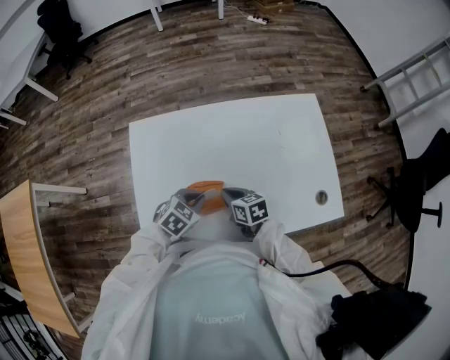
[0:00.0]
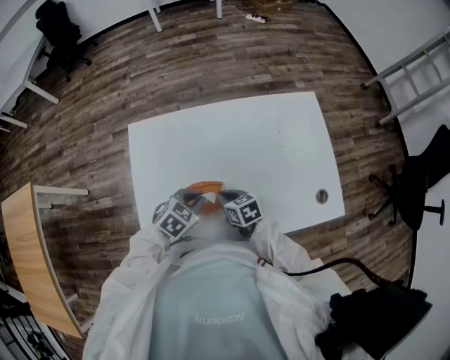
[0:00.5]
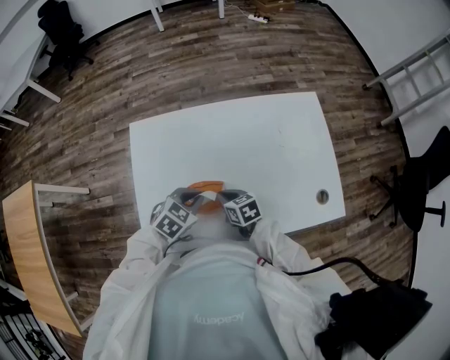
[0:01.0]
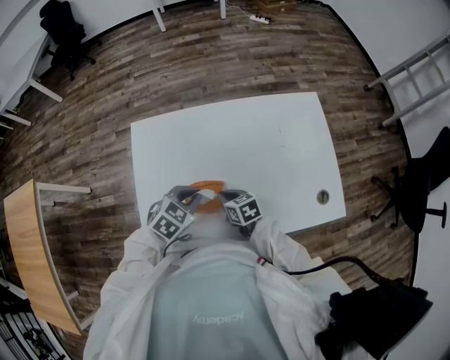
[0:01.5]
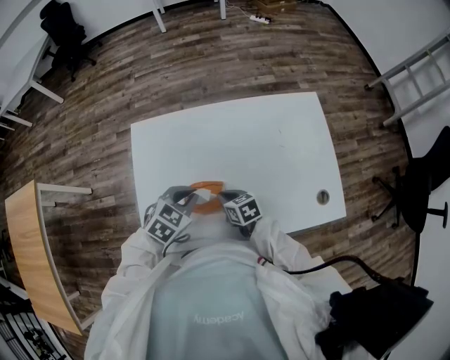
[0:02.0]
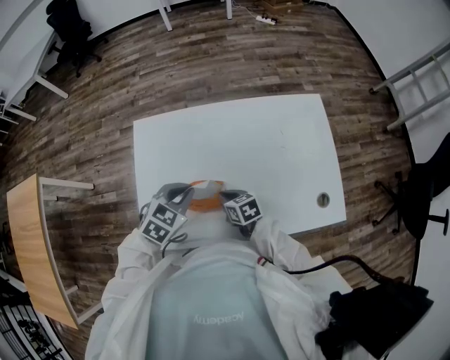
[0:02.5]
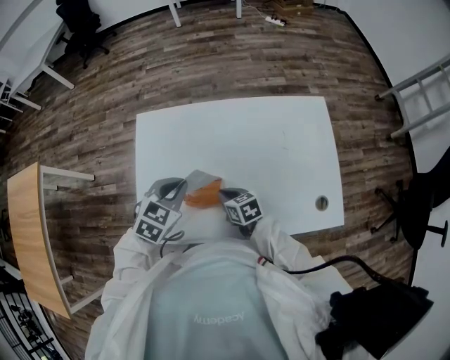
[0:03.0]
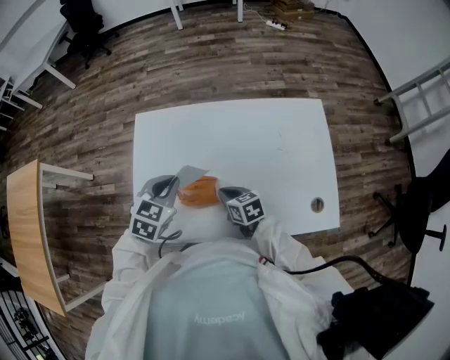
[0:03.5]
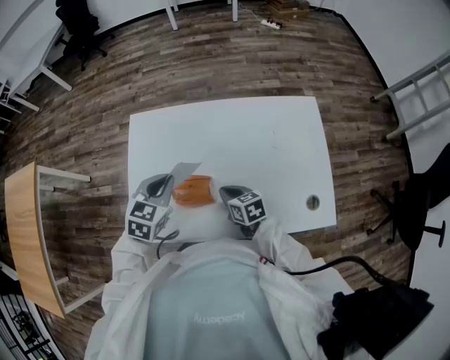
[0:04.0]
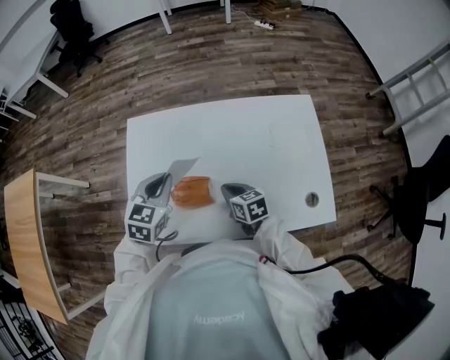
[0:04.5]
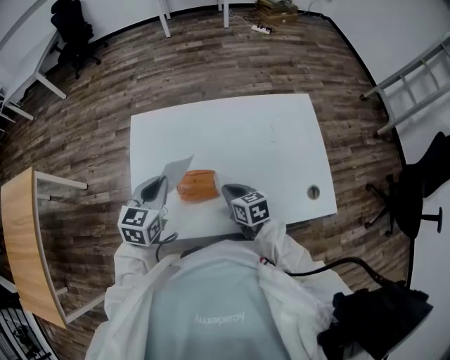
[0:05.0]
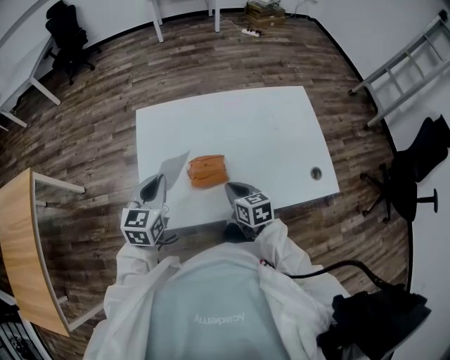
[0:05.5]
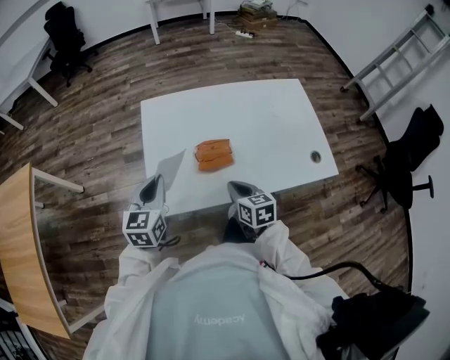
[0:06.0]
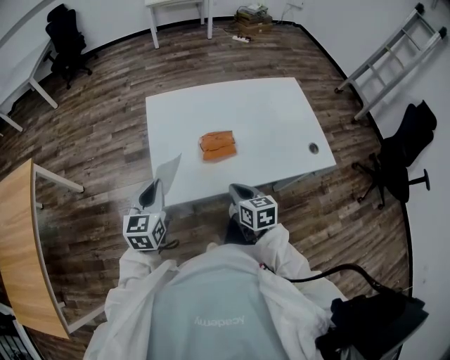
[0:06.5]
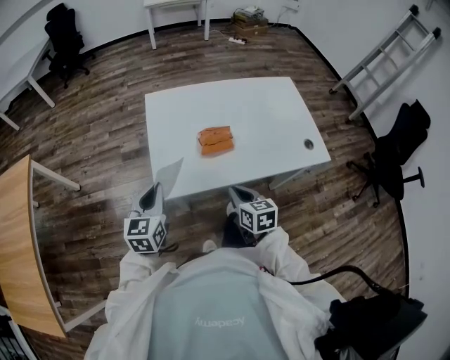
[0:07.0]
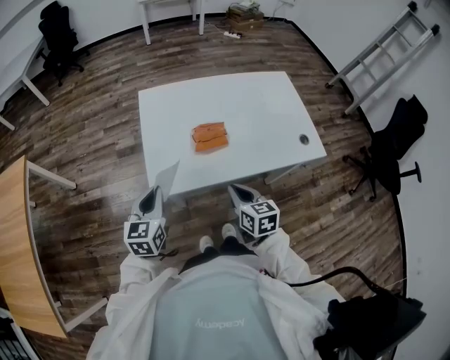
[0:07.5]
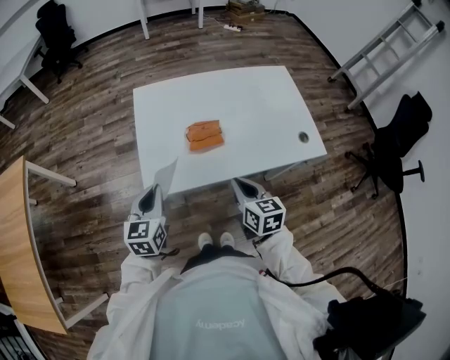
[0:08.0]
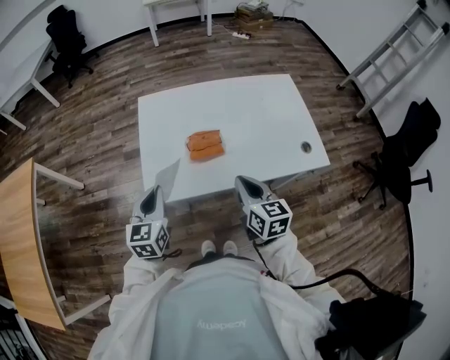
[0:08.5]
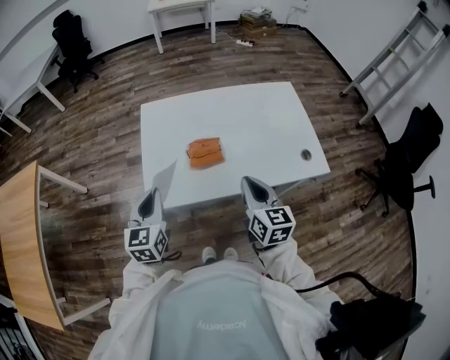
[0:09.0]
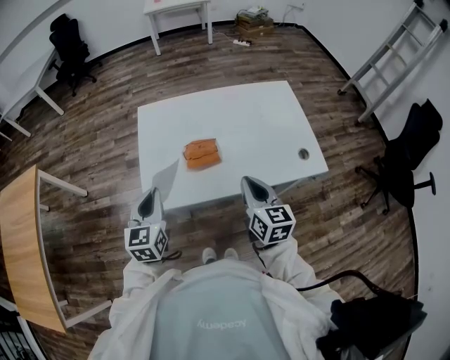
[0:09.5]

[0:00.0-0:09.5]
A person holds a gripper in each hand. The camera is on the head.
0:00.0 to 0:02.0: The left gripper travels upward by roughly 10 cm.
0:02.0 to 0:04.0: The right gripper moves roughly 5 cm. The left gripper heads upward, covering approximately 5 cm, and turns by roughly 20 degrees.
0:04.0 to 0:05.5: The left gripper moves to the left, roughly 10 cm. The right gripper moves some 10 cm.
0:05.5 to 0:07.5: The left gripper is displaced backward and to the left by some 15 cm. Meanwhile the right gripper travels backward by about 15 cm.
0:07.5 to 0:09.5: The right gripper is displaced to the right and upward by roughly 10 cm. The left gripper changes place by approximately 5 cm.

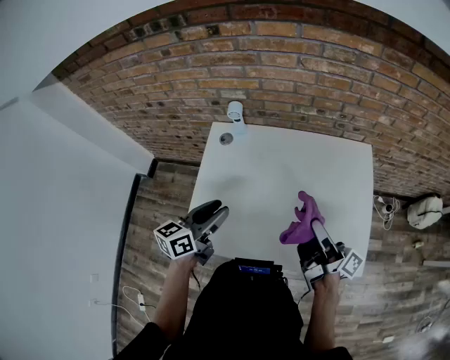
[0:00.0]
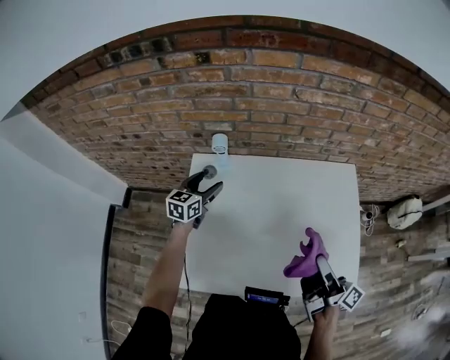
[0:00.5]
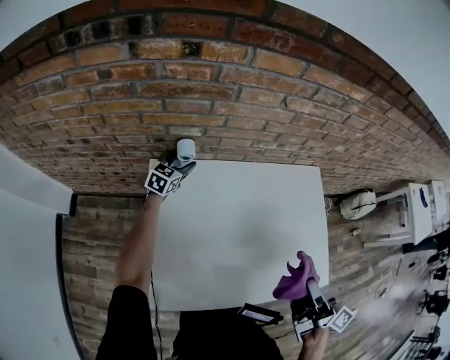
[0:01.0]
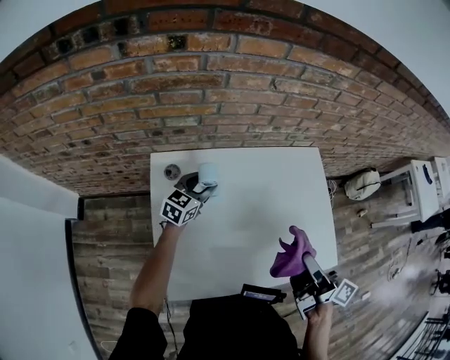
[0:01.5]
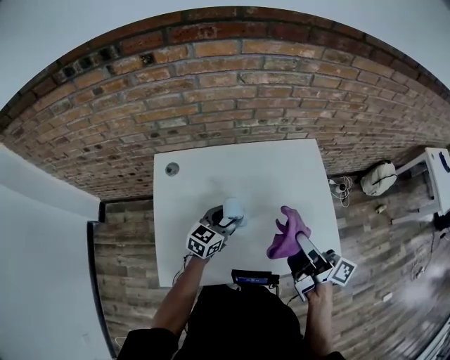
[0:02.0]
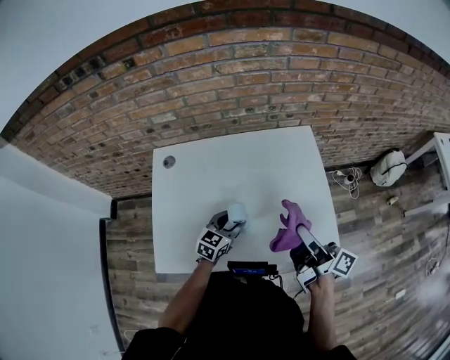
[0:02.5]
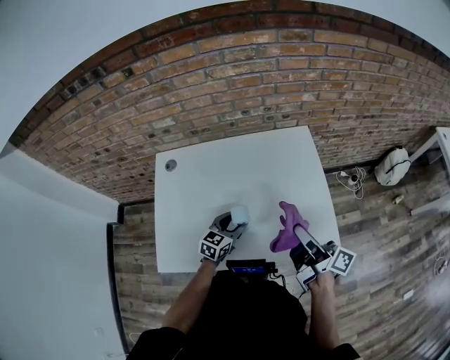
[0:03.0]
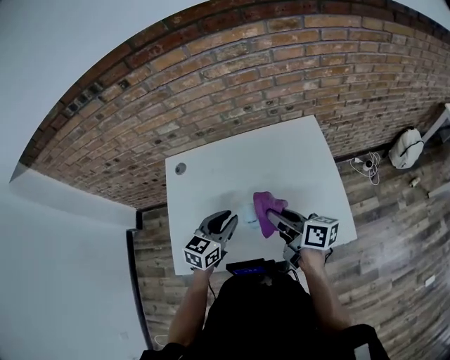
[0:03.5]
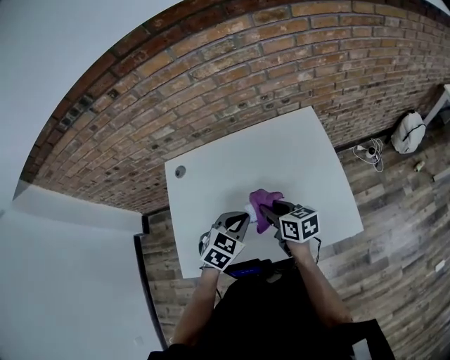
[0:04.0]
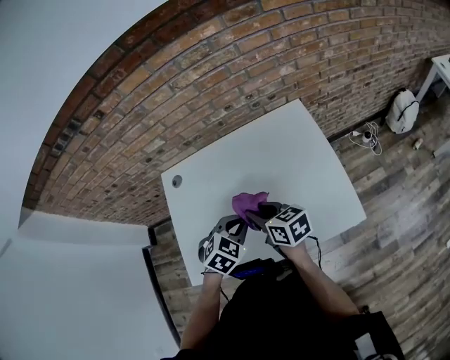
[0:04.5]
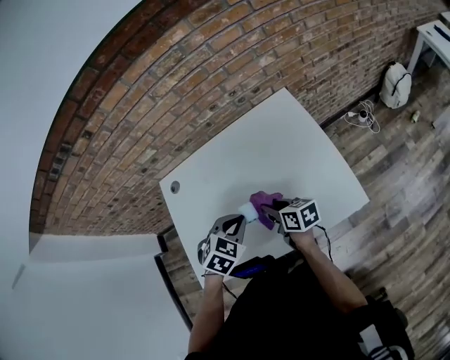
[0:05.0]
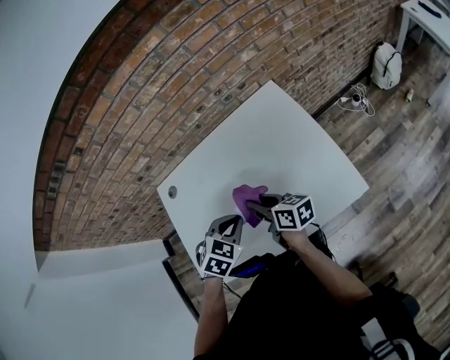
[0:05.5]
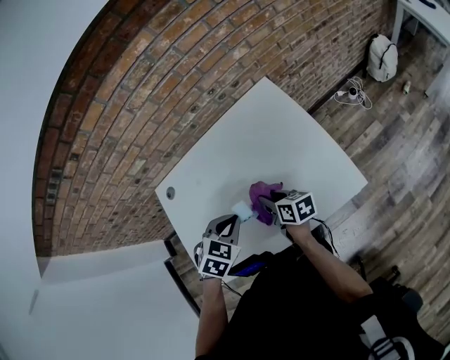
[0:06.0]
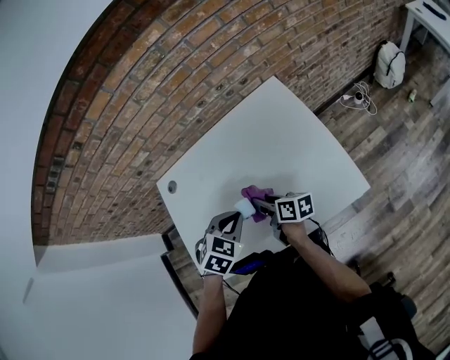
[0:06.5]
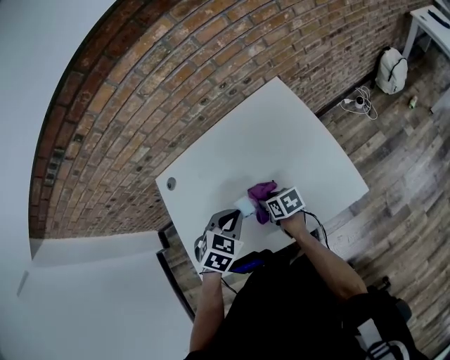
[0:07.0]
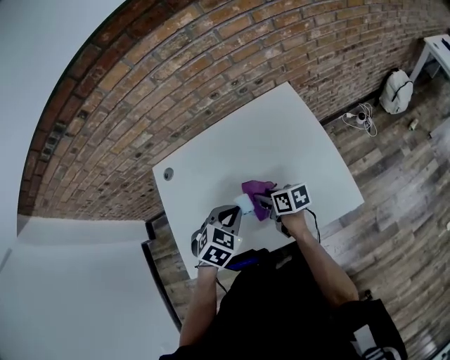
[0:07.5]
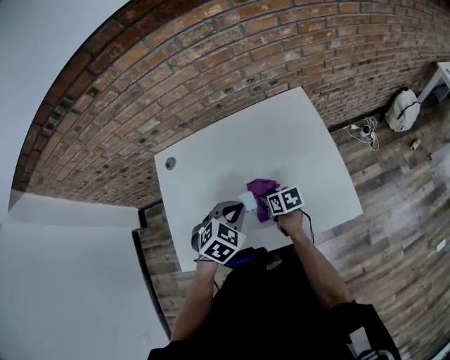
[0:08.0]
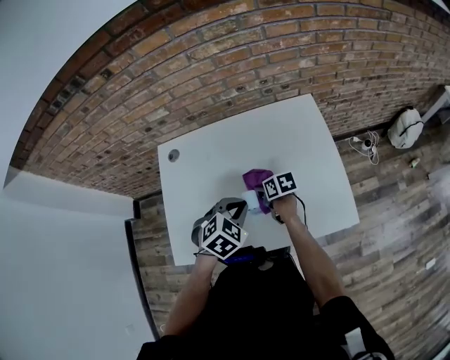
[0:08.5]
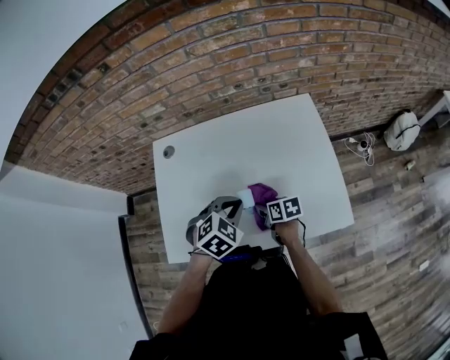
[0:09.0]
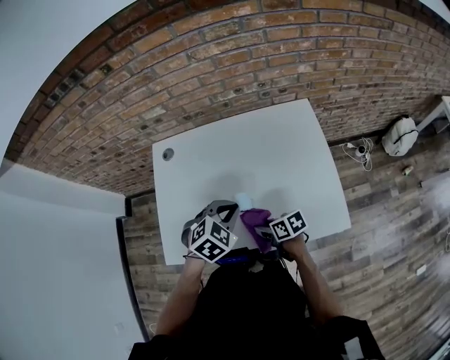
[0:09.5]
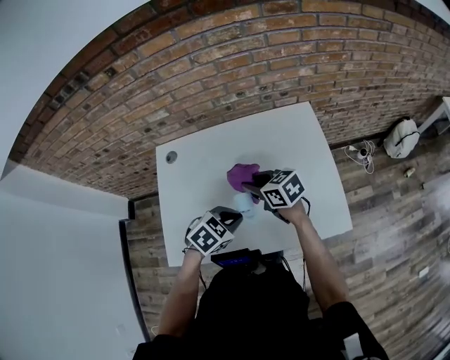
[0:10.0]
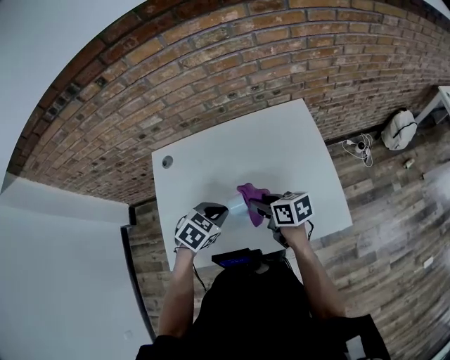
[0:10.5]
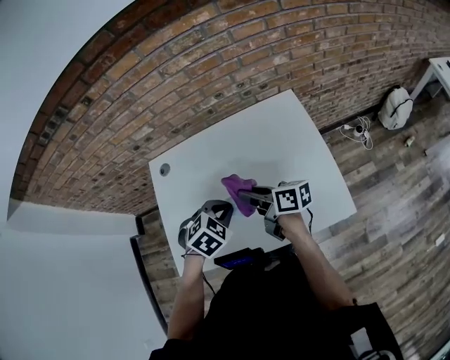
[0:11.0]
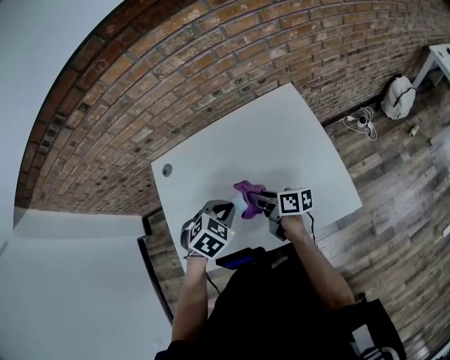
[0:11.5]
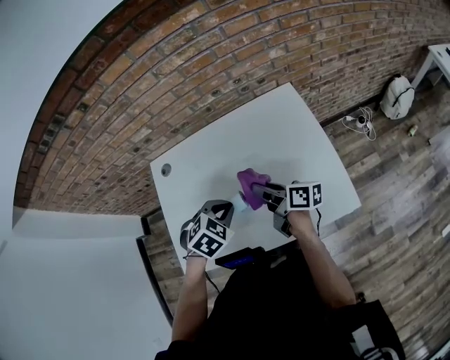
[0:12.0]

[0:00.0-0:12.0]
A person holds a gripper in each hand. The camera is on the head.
0:00.0 to 0:02.0: The left gripper heads to the right and downward, covering about 15 cm, goes forward and returns, some 40 cm each way, and turns by about 30 degrees.
0:02.0 to 0:04.0: The right gripper shifts approximately 15 cm downward, and points its fingers approximately 30 degrees further downward, while the left gripper is displaced backward and to the right by roughly 10 cm, travels downward and back again, about 5 cm each way, swivels roughly 40 degrees, and closes up.
0:04.0 to 0:06.0: The right gripper swings up and down, about 10 cm each way, with 3 reversals.
0:06.0 to 0:08.0: The right gripper moves up and down over roughly 10 cm, changing direction 2 times, and rotates some 30 degrees.
0:08.0 to 0:10.0: The right gripper heads upward, covering roughly 15 cm, and changes its angle by some 30 degrees.
0:10.0 to 0:12.0: The right gripper goes roughly 5 cm to the right, goes downward and returns, about 5 cm each way, and rolls clockwise, seen from behind, by some 40 degrees.

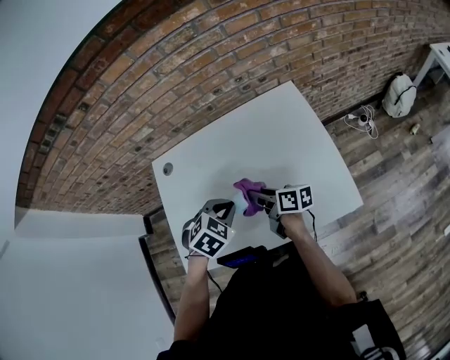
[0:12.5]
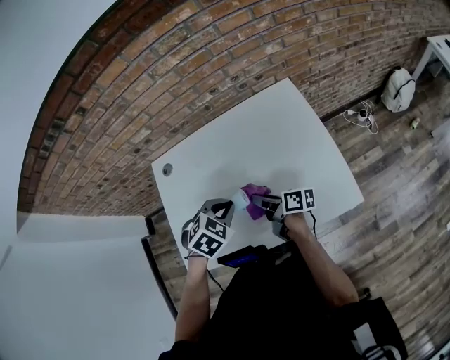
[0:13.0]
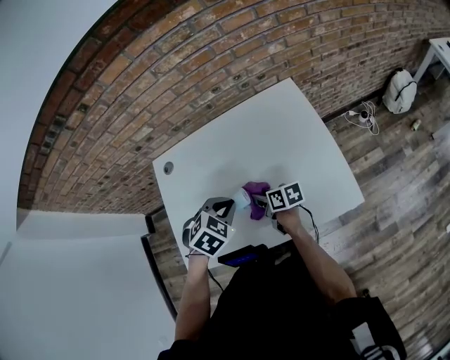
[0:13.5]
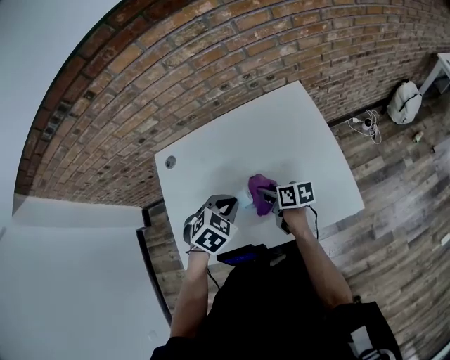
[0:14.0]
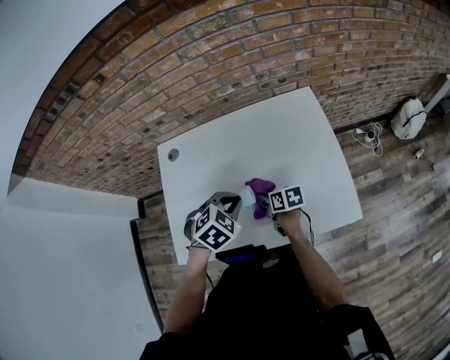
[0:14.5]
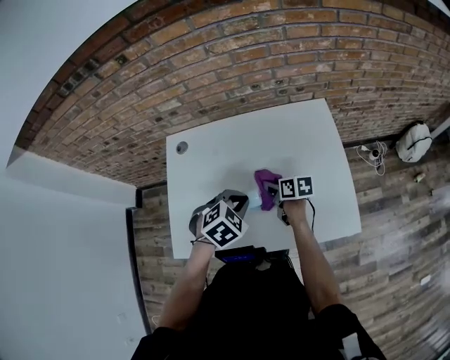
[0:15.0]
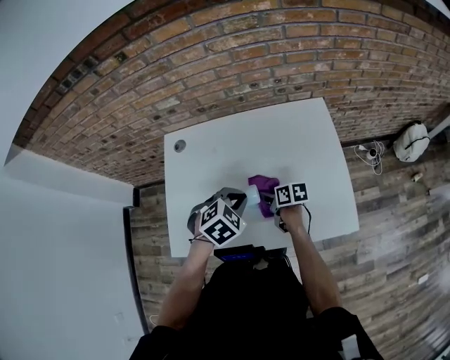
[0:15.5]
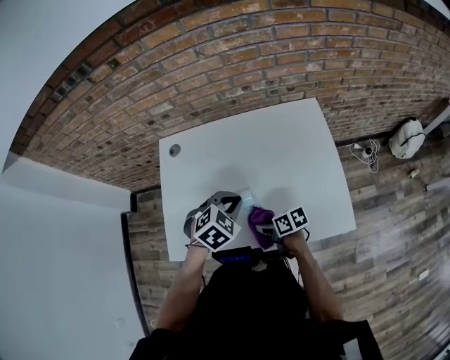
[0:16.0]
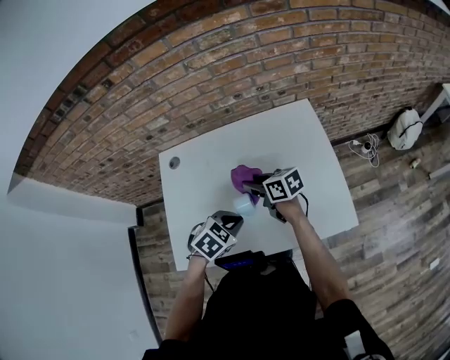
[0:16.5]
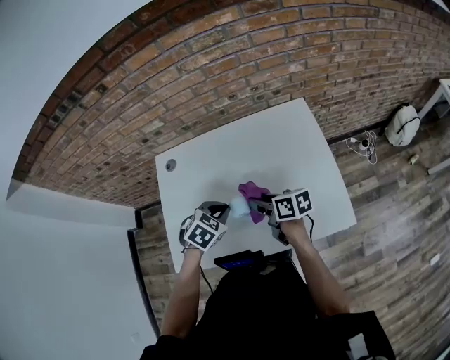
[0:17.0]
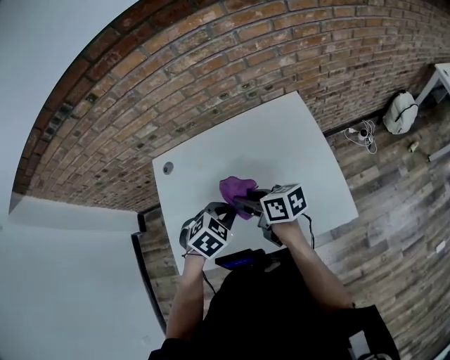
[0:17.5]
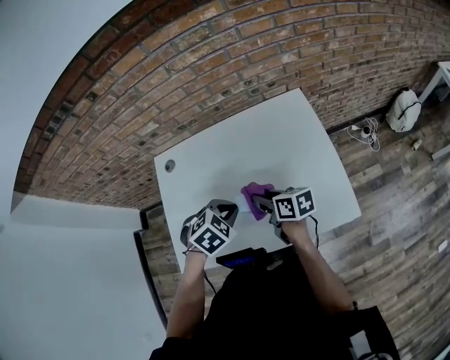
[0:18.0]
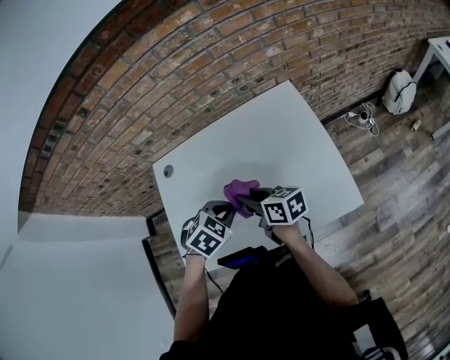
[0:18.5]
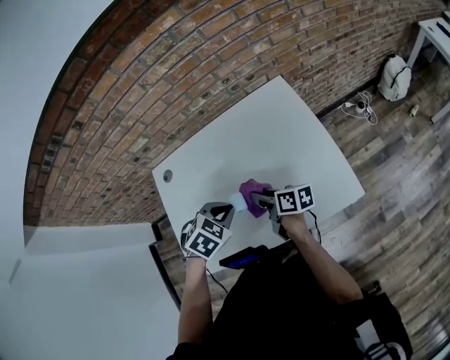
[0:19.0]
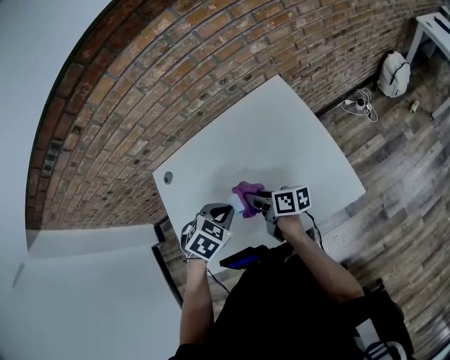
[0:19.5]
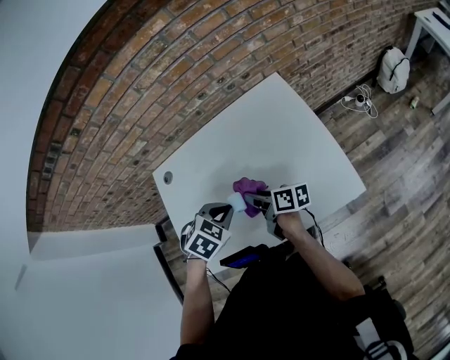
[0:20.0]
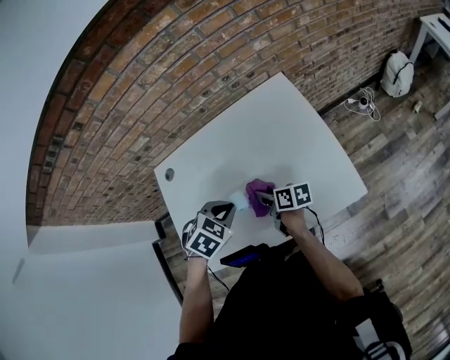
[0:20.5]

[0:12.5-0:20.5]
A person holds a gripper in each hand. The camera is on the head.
0:12.5 to 0:14.5: The right gripper goes about 10 cm downward, and rotates about 30 degrees.
0:14.5 to 0:16.5: The right gripper moves forward and backward over about 15 cm, changing direction 2 times, and rotates about 20 degrees.
0:16.5 to 0:18.5: The right gripper moves up and down over approximately 5 cm, changing direction 2 times.
0:18.5 to 0:20.5: The right gripper moves downward, approximately 10 cm.
